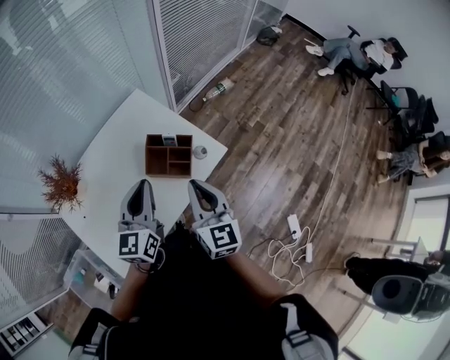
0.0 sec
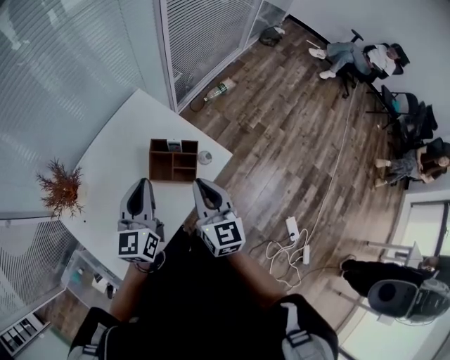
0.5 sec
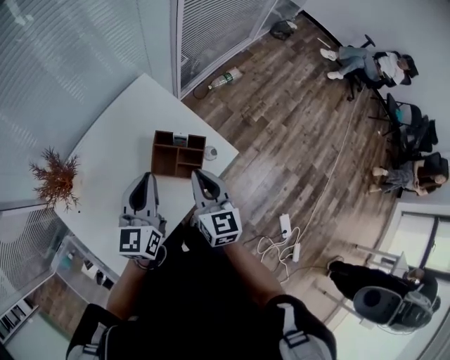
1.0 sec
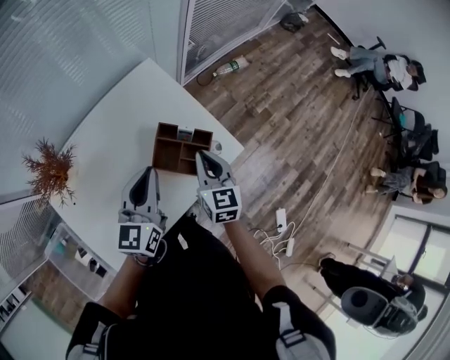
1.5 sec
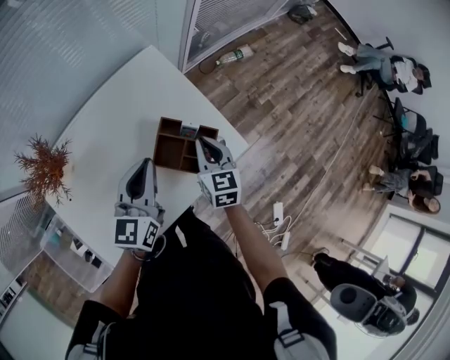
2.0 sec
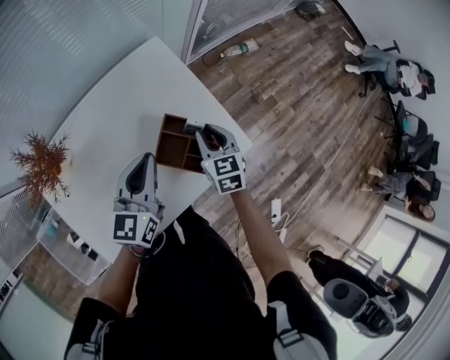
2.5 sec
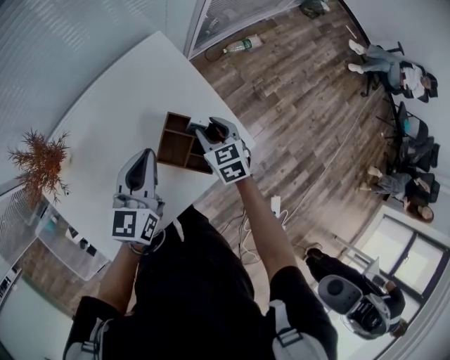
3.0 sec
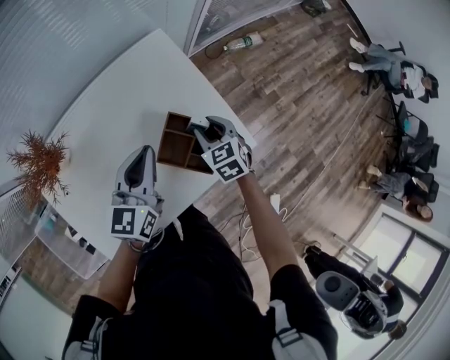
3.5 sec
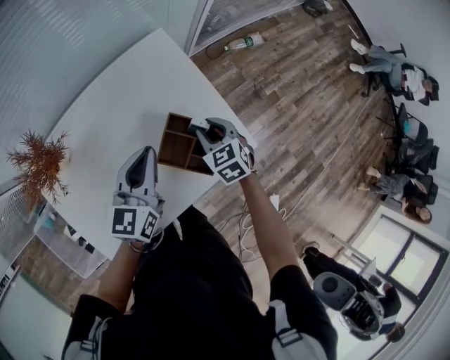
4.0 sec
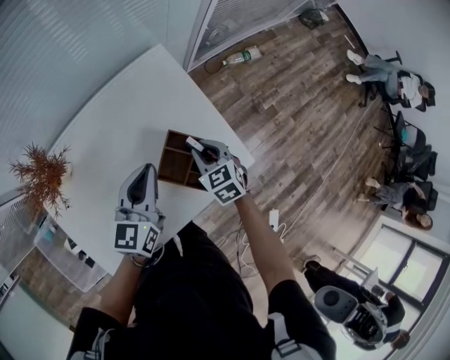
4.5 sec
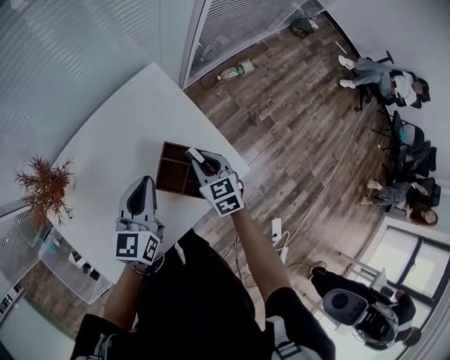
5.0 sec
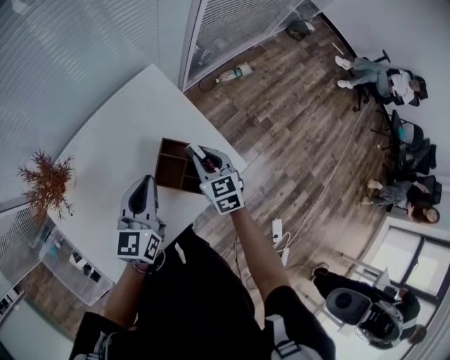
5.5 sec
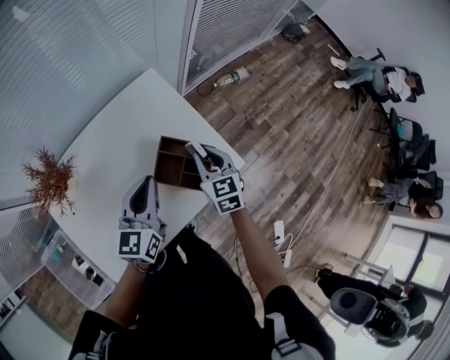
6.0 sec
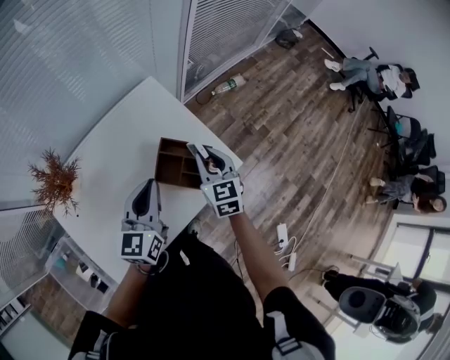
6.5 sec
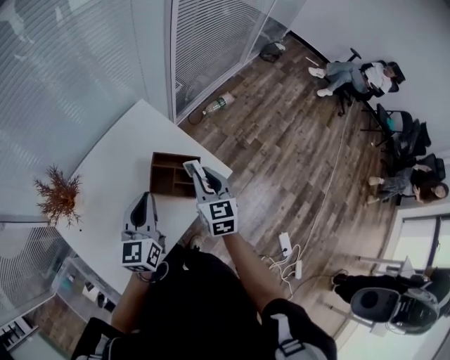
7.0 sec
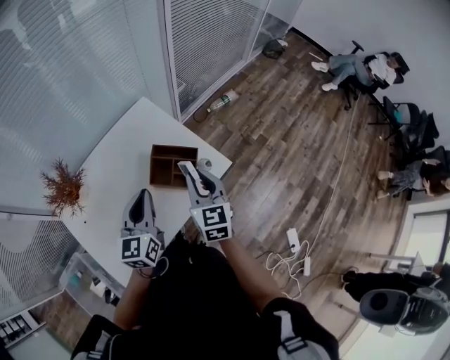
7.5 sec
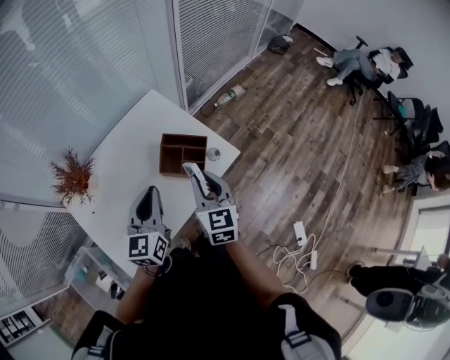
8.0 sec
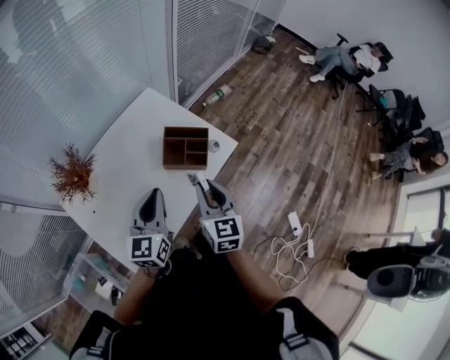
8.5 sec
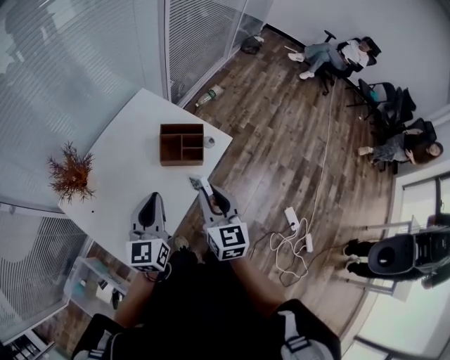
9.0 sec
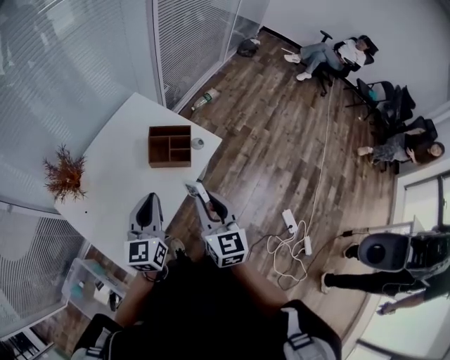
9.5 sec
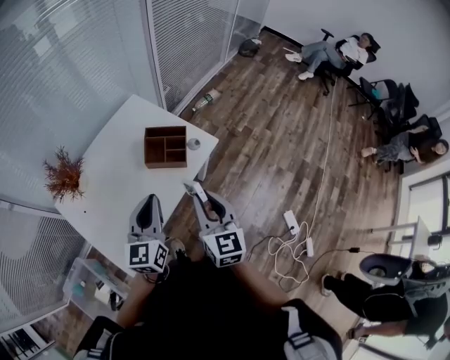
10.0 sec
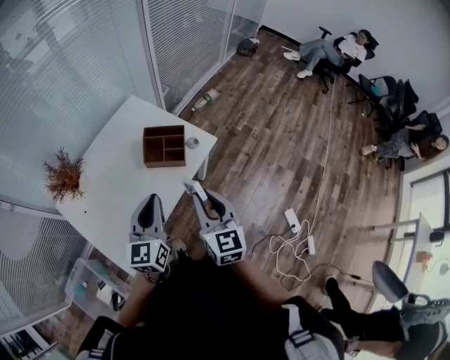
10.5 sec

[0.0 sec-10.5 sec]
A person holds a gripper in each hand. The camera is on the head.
0.0 sec to 2.0 sec: The left gripper shifts roughly 15 cm forward, downward and to the left, while the right gripper travels forward and downward by some 25 cm, and swivels roughly 30 degrees.
2.0 sec to 4.0 sec: The left gripper shifts by roughly 5 cm. Meanwhile the right gripper goes approximately 5 cm downward, swivels approximately 30 degrees, and opens its fingers.
4.0 sec to 6.5 sec: The right gripper goes roughly 15 cm upward and backward, and turns by about 30 degrees, while the left gripper is displaced backward and upward by roughly 10 cm.
6.5 sec to 8.5 sec: The right gripper moves backward, approximately 25 cm. Meanwhile the left gripper travels backward by roughly 15 cm.
8.5 sec to 10.5 sec: The left gripper goes some 10 cm to the right and backward; the right gripper shifts about 15 cm backward and to the right.

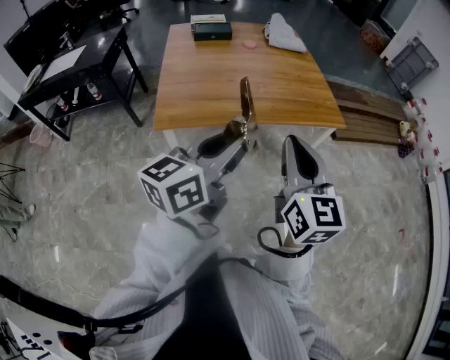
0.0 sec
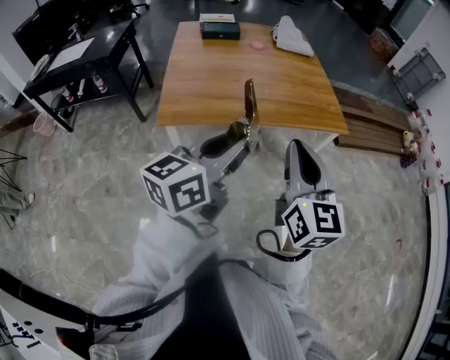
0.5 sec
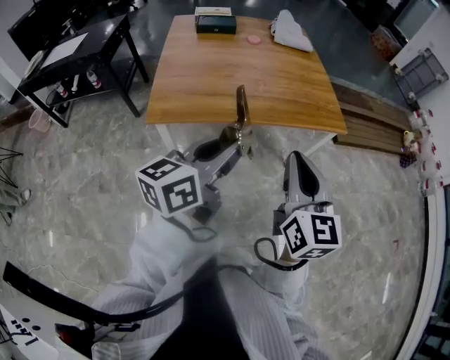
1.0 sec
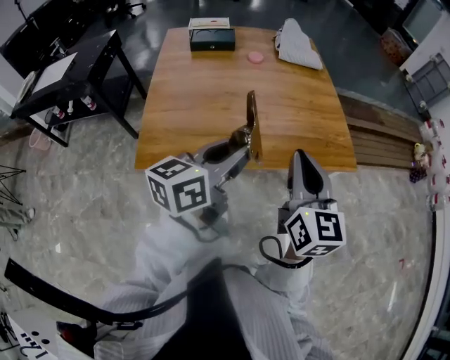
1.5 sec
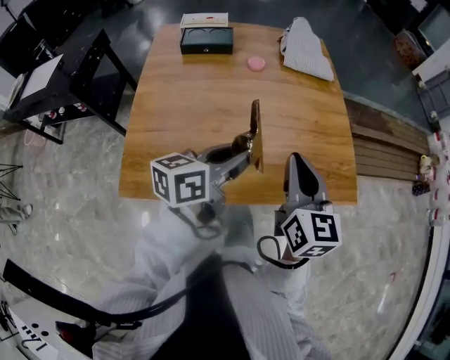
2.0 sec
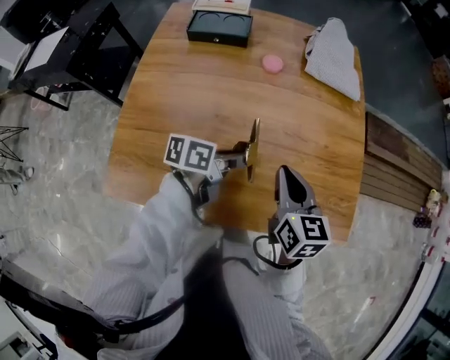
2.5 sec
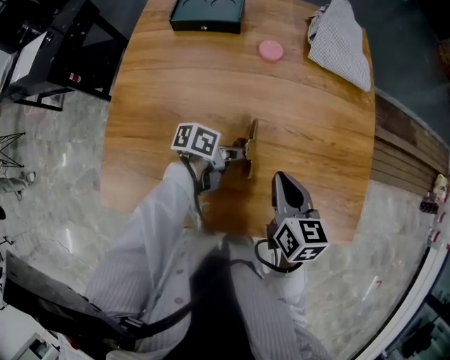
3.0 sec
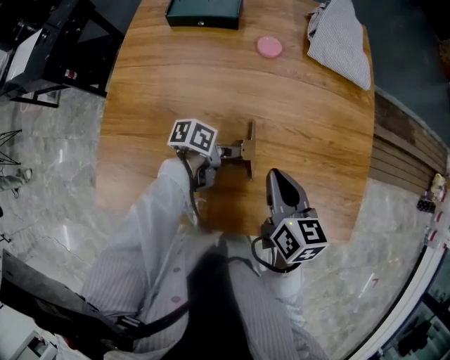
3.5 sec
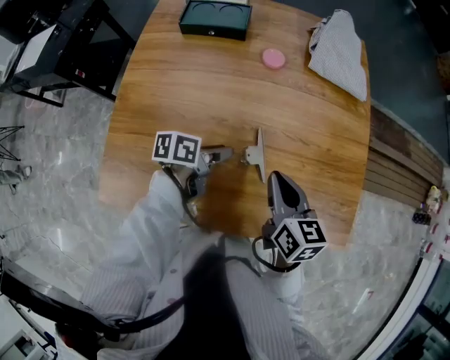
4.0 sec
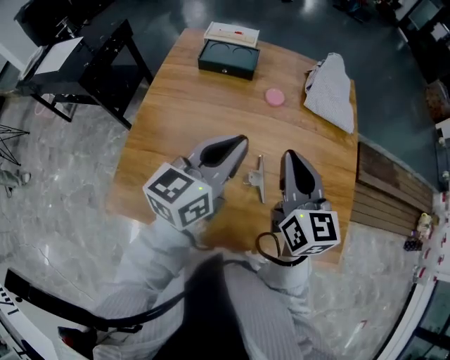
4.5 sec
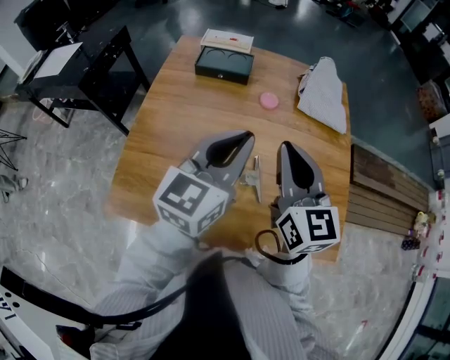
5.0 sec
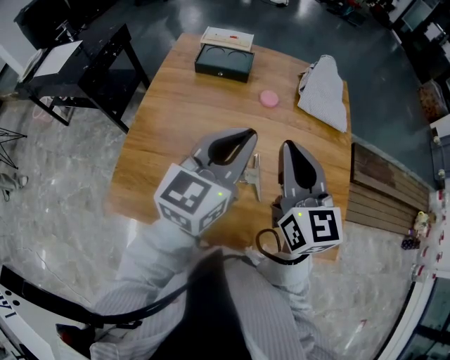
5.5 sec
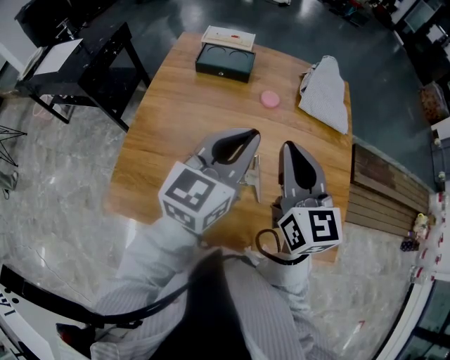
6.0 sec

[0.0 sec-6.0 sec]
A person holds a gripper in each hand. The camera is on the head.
0.0 sec to 2.0 sec: Both grippers move forward, about 40 cm.
2.0 sec to 4.0 sec: The grippers both shift downward and forward by approximately 25 cm. The left gripper changes its angle by about 40 degrees; the right gripper swivels roughly 30 degrees.
4.0 sec to 6.0 sec: The right gripper moves upward, approximately 20 cm, and rotates some 30 degrees. Meanwhile the left gripper heads upward, covering roughly 30 cm, rotates about 70 degrees, and closes up.

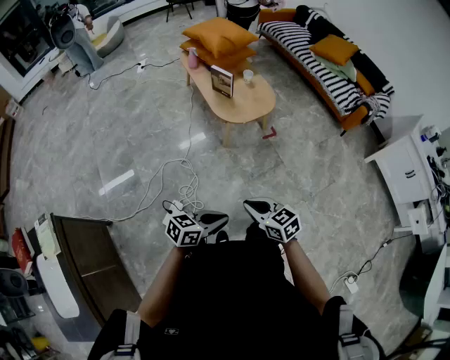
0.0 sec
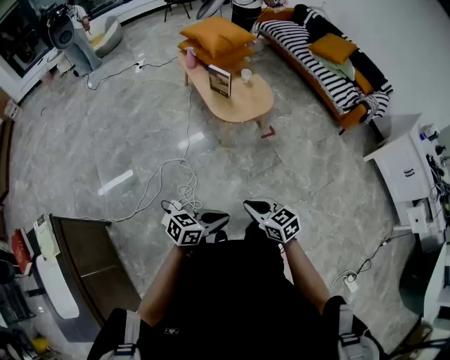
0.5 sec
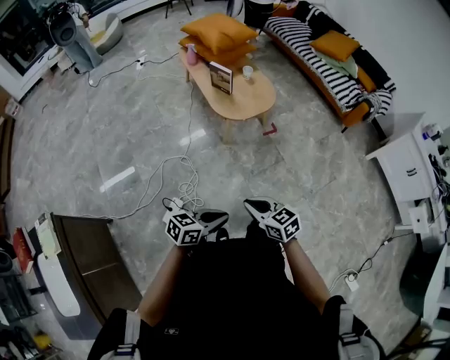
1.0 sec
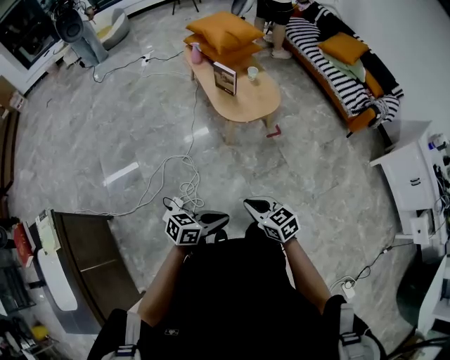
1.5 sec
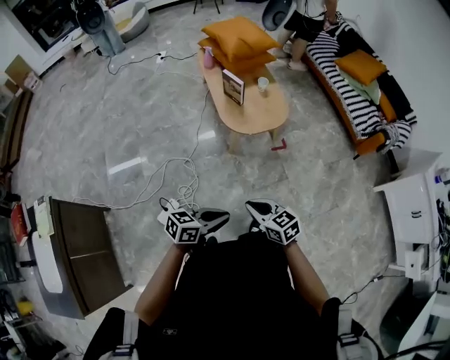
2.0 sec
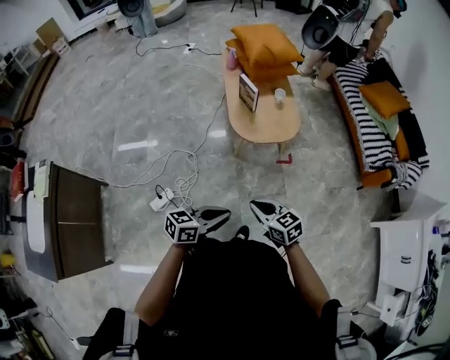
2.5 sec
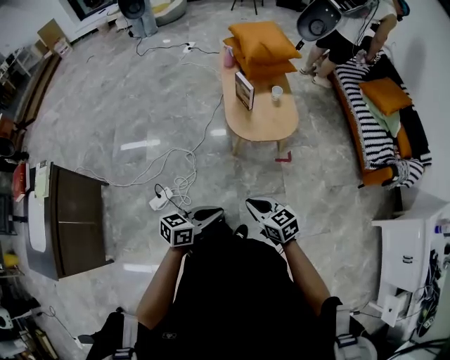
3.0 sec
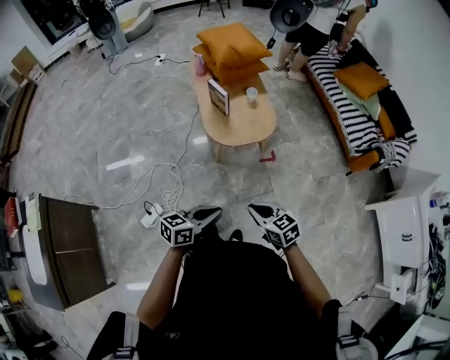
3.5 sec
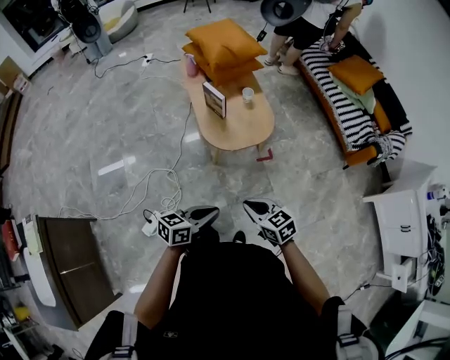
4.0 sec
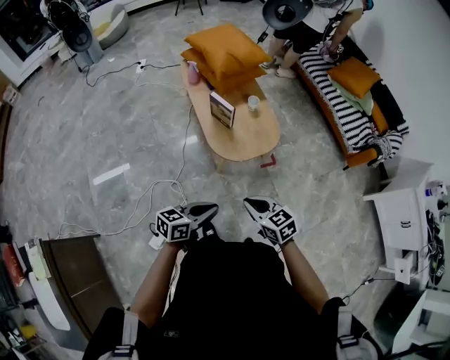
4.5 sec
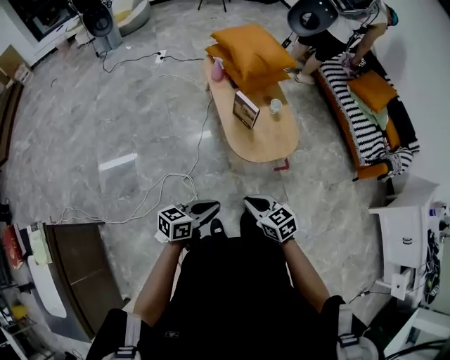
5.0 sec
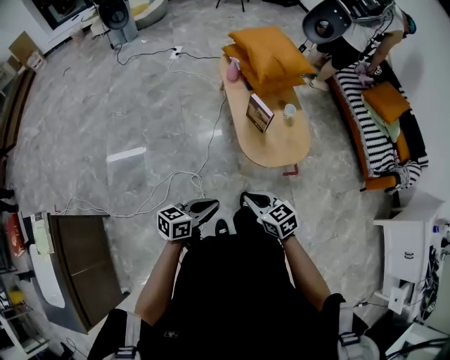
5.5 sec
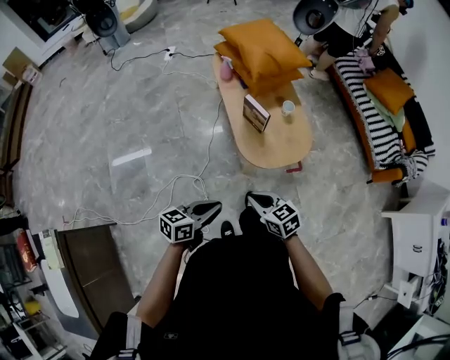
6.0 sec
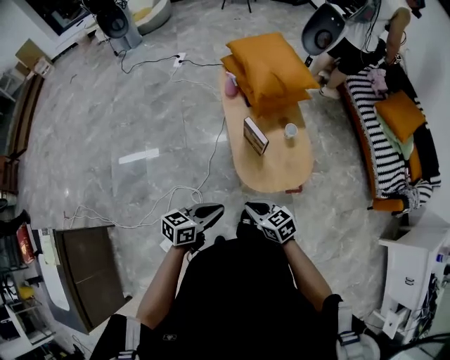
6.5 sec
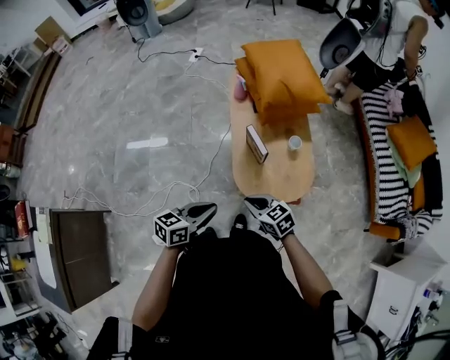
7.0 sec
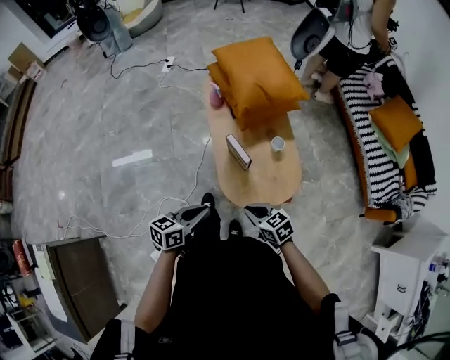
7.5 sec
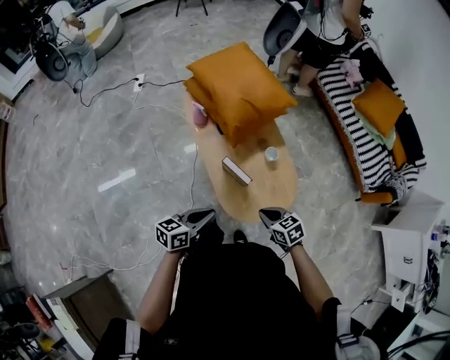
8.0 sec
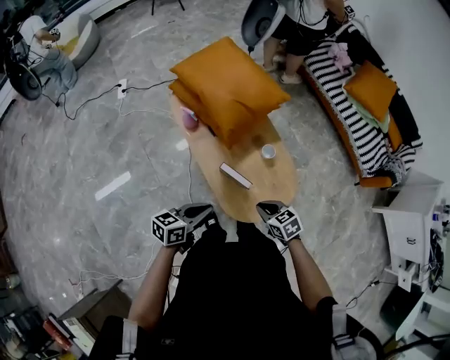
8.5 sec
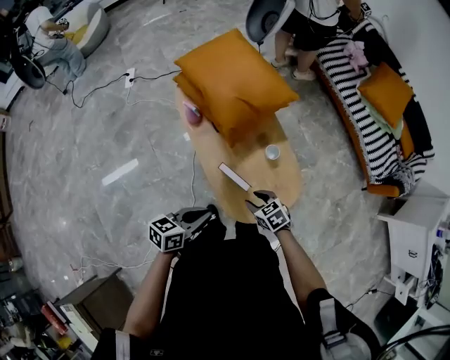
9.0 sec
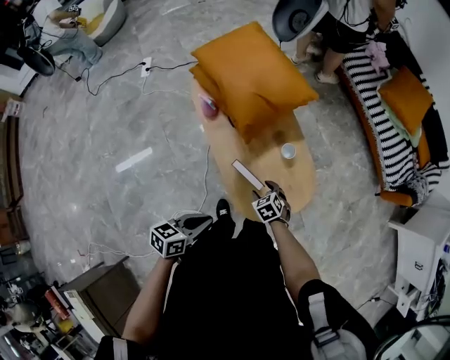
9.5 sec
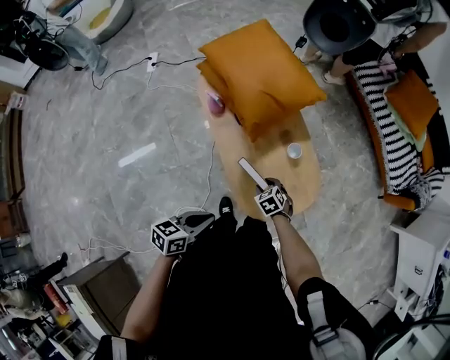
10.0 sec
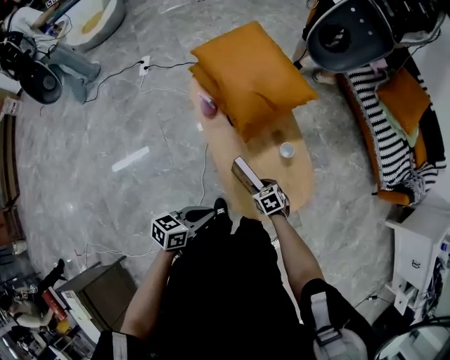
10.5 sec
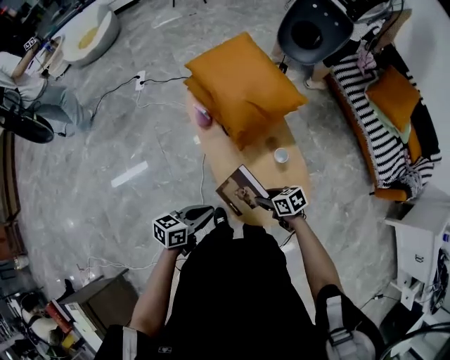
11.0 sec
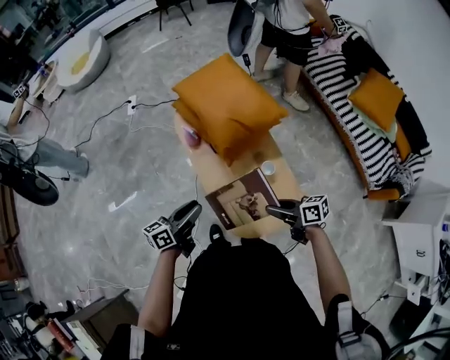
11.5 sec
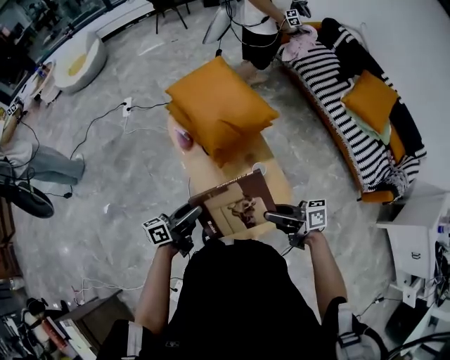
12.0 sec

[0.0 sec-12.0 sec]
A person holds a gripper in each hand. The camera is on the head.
0.0 sec to 2.0 sec: Both grippers travel together forward and to the right, roughly 15 cm.
2.0 sec to 4.0 sec: The right gripper travels forward and to the right by roughly 15 cm. Meanwhile the left gripper shifts approximately 15 cm forward.
4.0 sec to 6.0 sec: The grippers both shift to the left and forward by some 25 cm.
6.0 sec to 8.0 sec: The right gripper is displaced forward and to the right by some 30 cm. Meanwhile the left gripper heads forward, covering about 30 cm.
8.0 sec to 10.0 sec: The right gripper heads downward and forward, covering about 20 cm, turns by approximately 20 degrees, and opens up.
10.0 sec to 12.0 sec: The left gripper changes place by approximately 10 cm, swivels about 30 degrees, and opens. Meanwhile the right gripper goes roughly 30 cm upward, and tips its fingers upward by roughly 60 degrees.
